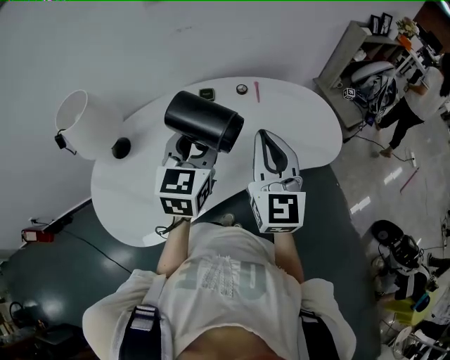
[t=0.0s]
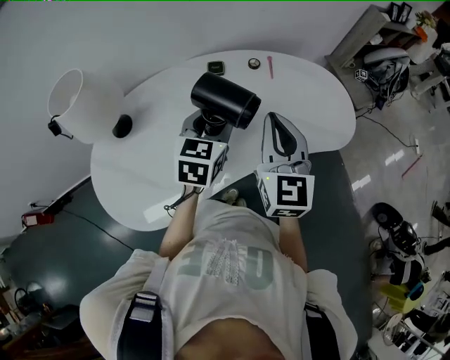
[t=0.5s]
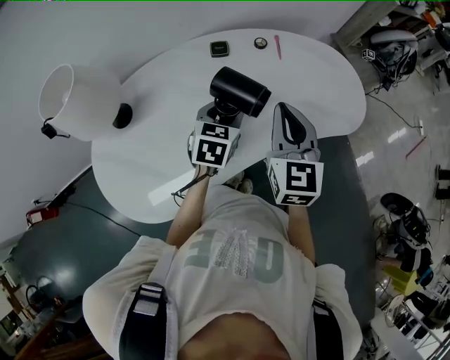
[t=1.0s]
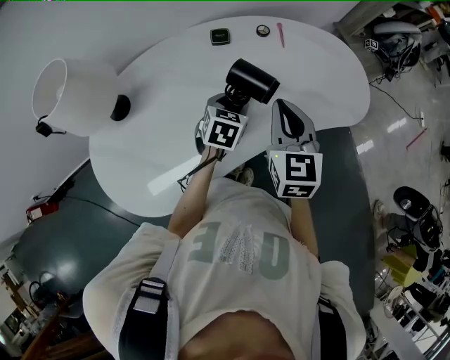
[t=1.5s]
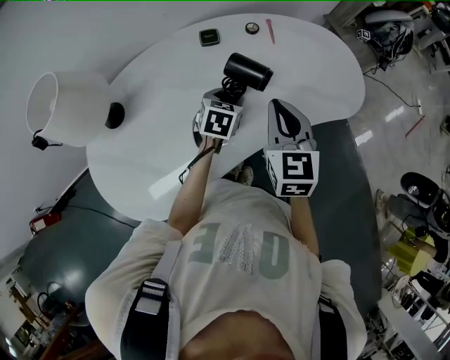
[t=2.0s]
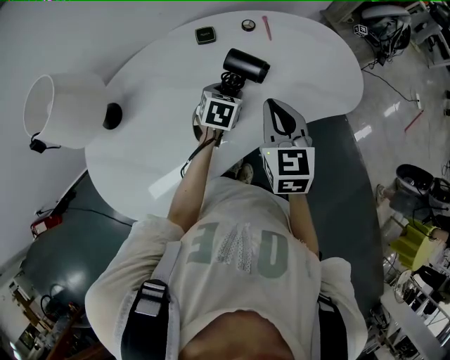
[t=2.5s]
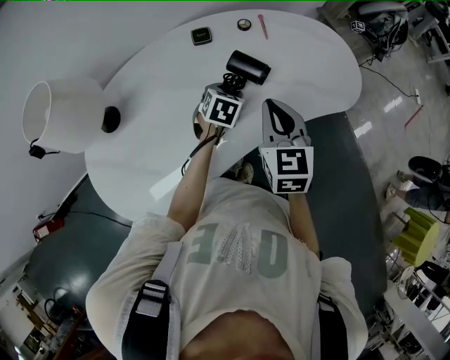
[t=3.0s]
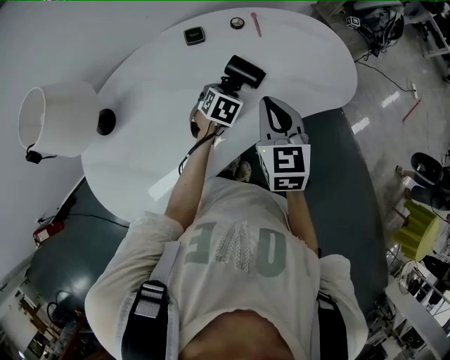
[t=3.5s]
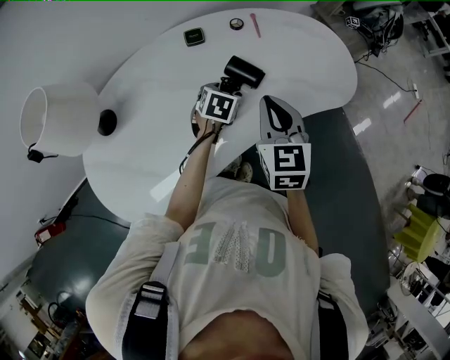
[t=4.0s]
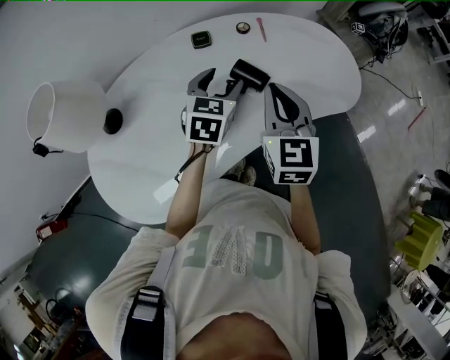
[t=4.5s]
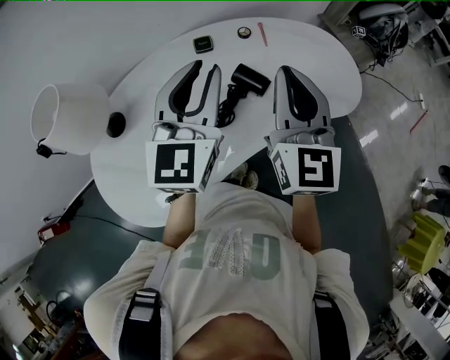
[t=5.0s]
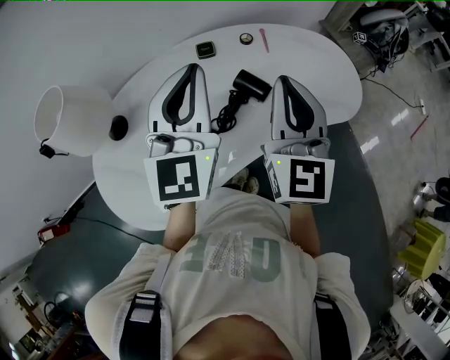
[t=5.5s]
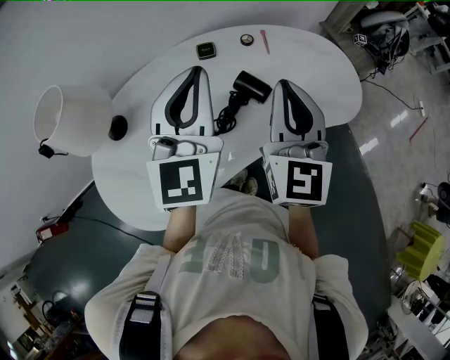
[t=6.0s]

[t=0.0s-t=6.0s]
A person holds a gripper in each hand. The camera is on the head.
t=0.0s to t=2.0s: The right gripper goes about 15 cm downward, and rotates about 20 degrees; the left gripper shifts approximately 25 cm downward, and tilts its fingers roughly 30 degrees downward.
t=2.0s to t=4.0s: The grippers make only small movements.
t=4.0s to t=6.0s: The left gripper shifts some 35 cm upward, tips its fingers upward by about 60 degrees, and closes up. The right gripper travels upward by approximately 15 cm, and turns by some 20 degrees.

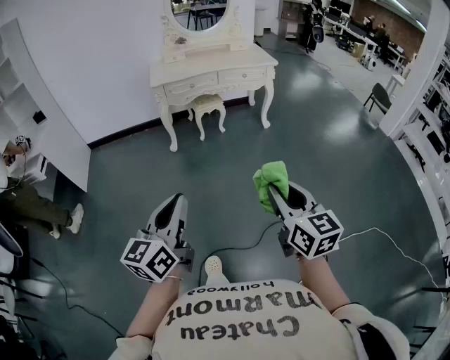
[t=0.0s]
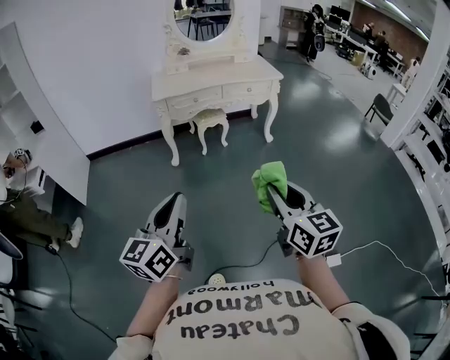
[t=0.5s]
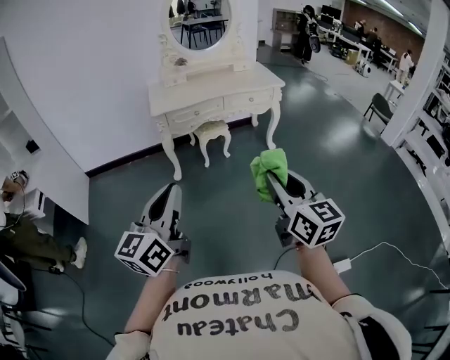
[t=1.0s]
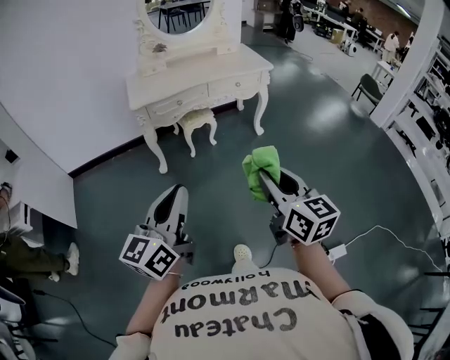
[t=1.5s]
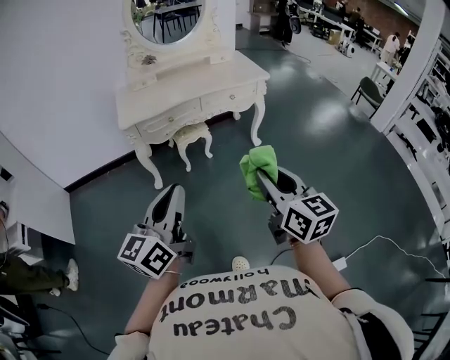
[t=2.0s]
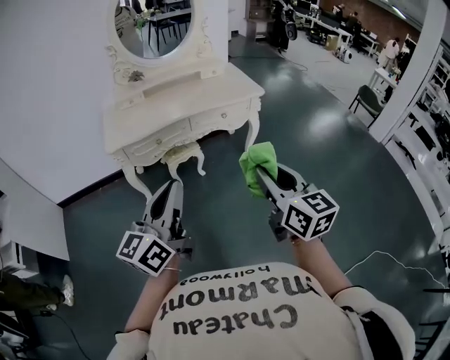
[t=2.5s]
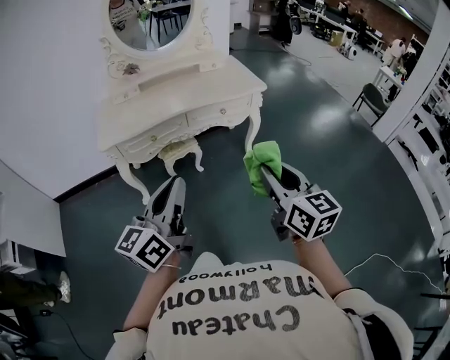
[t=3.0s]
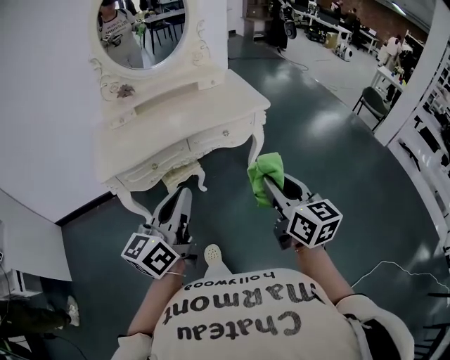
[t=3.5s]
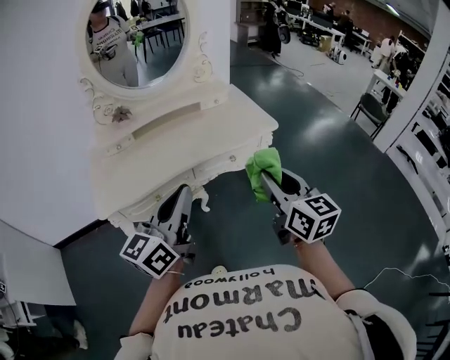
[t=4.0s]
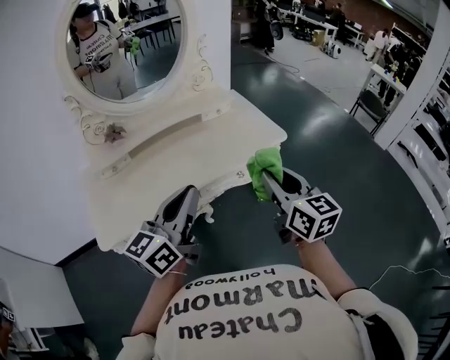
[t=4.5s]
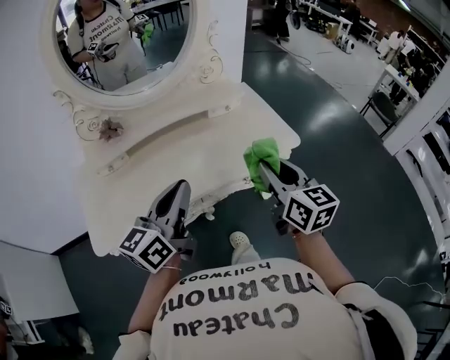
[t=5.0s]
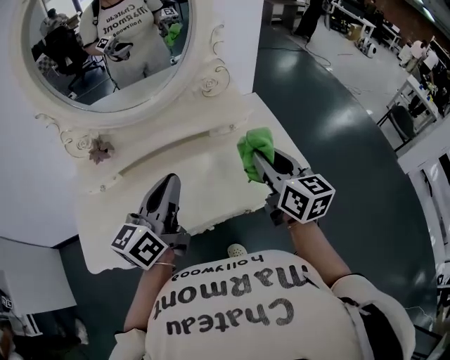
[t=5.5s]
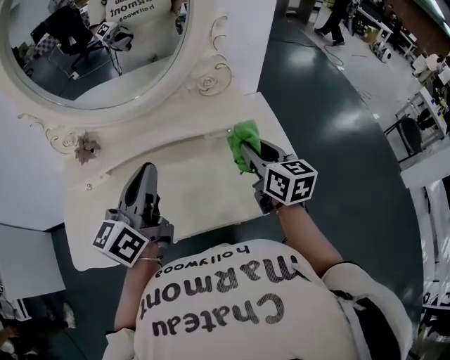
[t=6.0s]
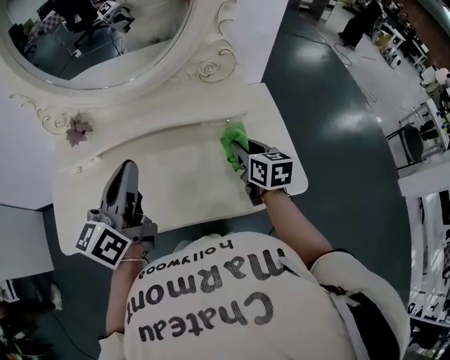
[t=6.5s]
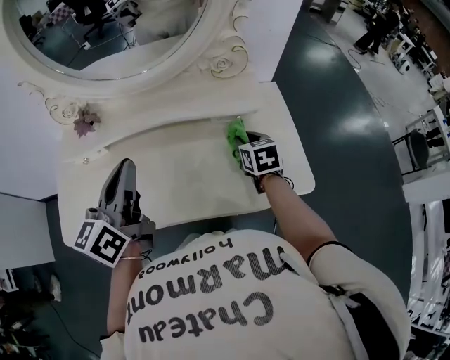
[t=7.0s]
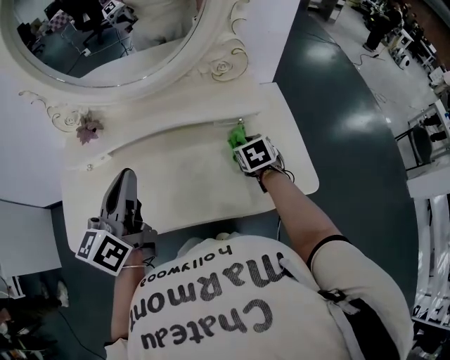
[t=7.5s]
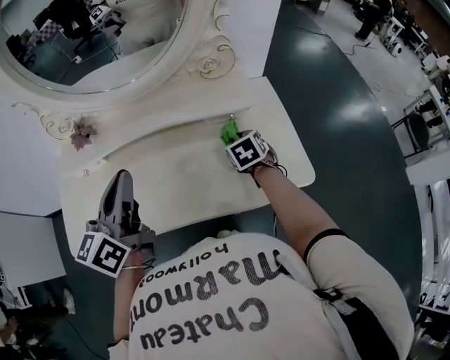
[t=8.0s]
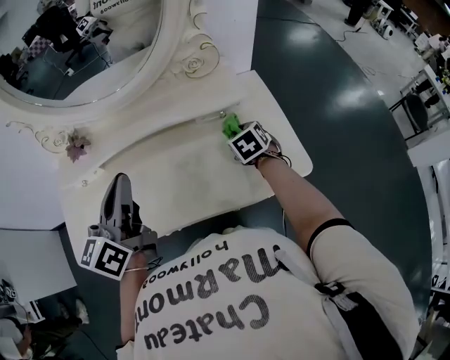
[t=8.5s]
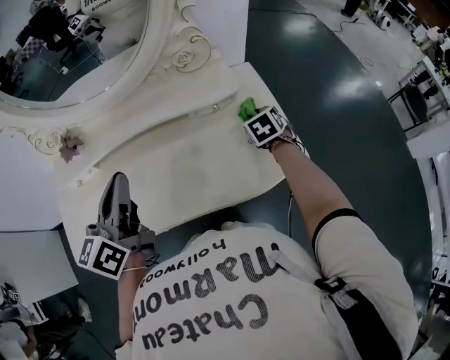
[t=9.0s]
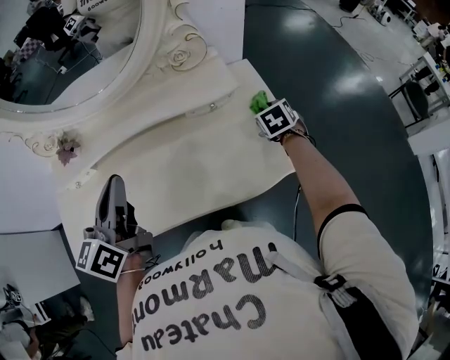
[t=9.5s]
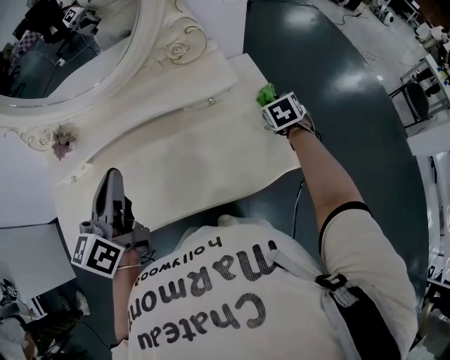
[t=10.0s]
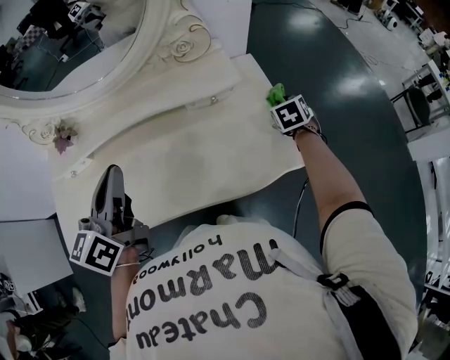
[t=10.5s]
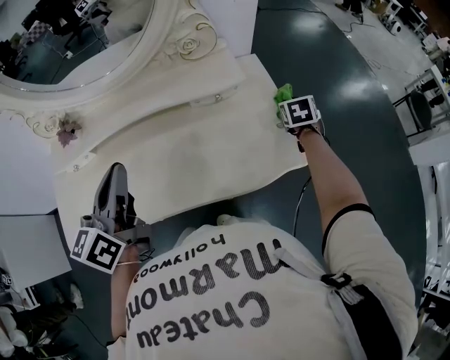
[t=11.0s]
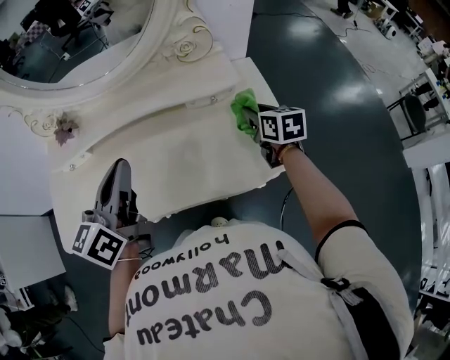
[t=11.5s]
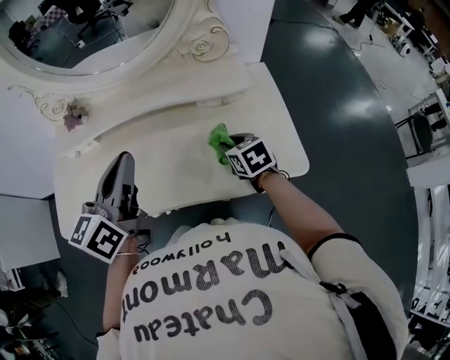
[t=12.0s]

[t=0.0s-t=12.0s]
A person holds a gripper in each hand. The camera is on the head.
t=0.0s to t=2.0s: The grippers both shift forward by some 35 cm.
t=2.0s to t=4.0s: The two grippers travel together, forward, roughly 40 cm.
t=4.0s to t=6.0s: The two grippers travel together, forward, roughly 50 cm. The left gripper swivels about 20 degrees.
t=6.0s to t=8.0s: The right gripper goes some 15 cm downward, and tilts its fingers approximately 40 degrees downward. The left gripper ends up approximately 5 cm from where it was.
t=8.0s to t=10.0s: The right gripper travels to the right by about 20 cm.
t=10.0s to t=12.0s: The right gripper shifts by about 20 cm, and changes its angle by about 30 degrees.

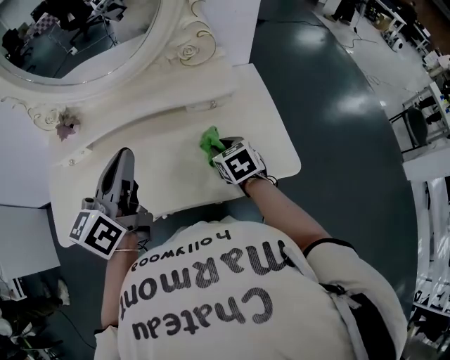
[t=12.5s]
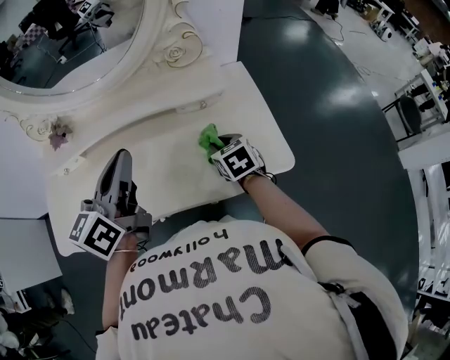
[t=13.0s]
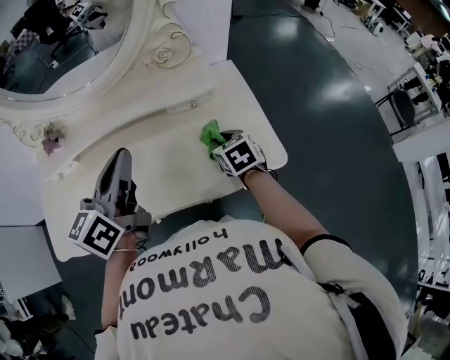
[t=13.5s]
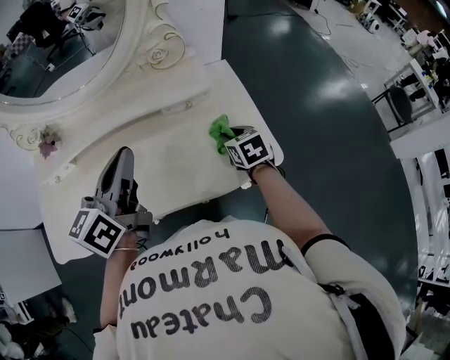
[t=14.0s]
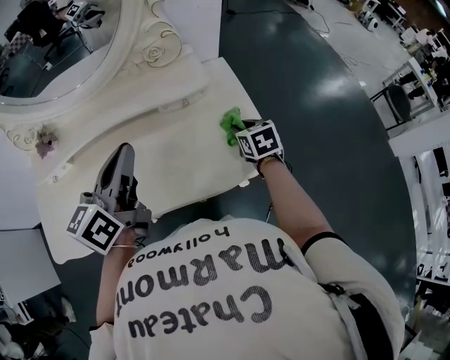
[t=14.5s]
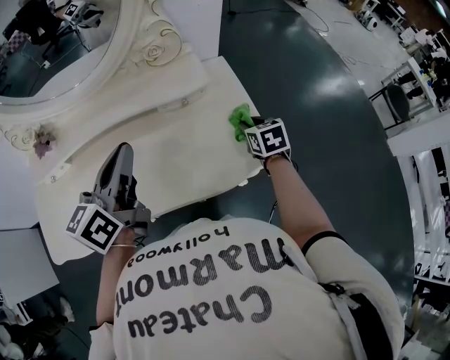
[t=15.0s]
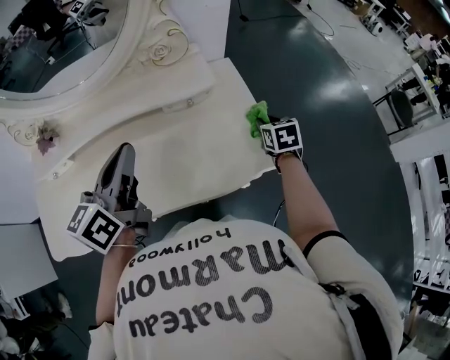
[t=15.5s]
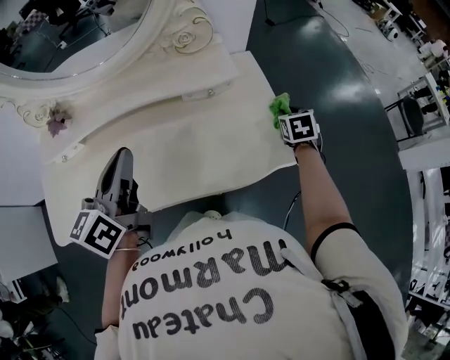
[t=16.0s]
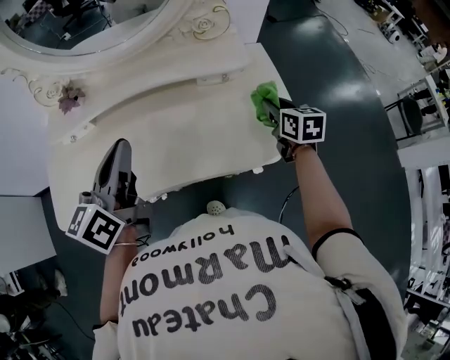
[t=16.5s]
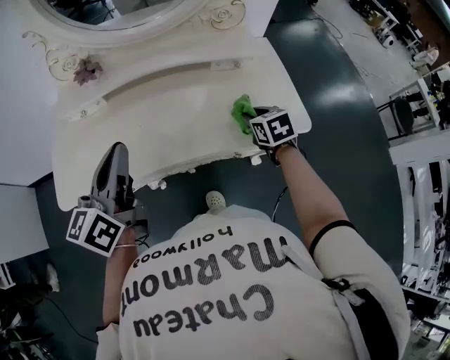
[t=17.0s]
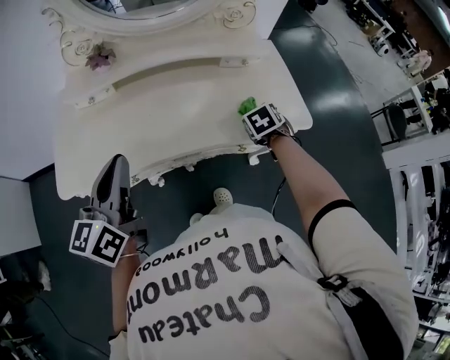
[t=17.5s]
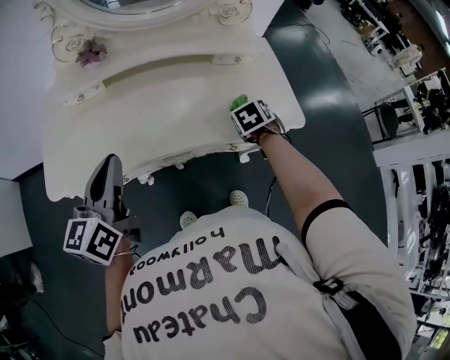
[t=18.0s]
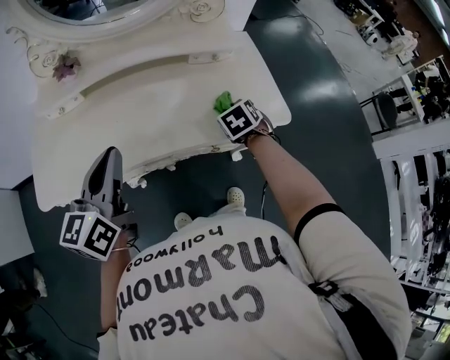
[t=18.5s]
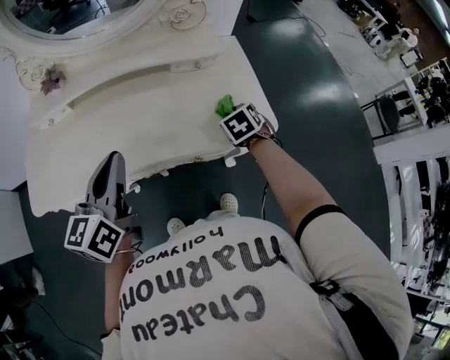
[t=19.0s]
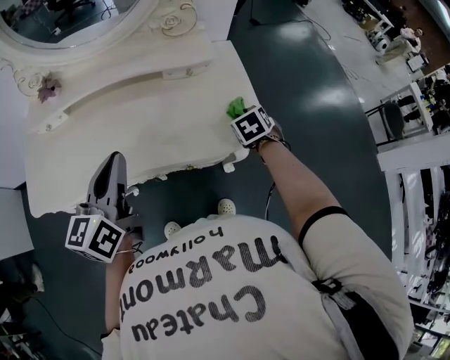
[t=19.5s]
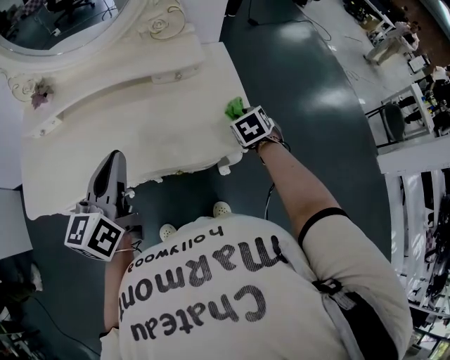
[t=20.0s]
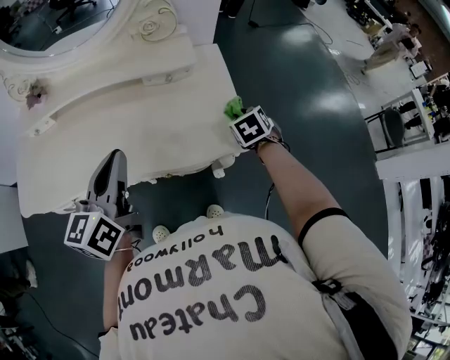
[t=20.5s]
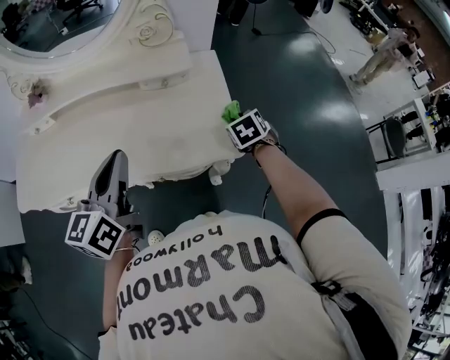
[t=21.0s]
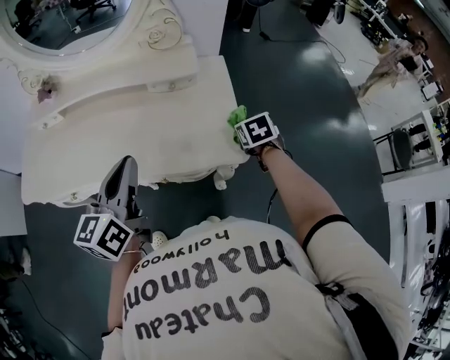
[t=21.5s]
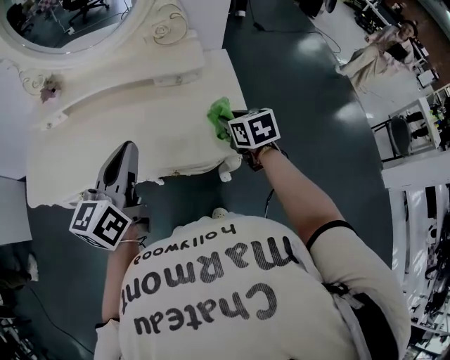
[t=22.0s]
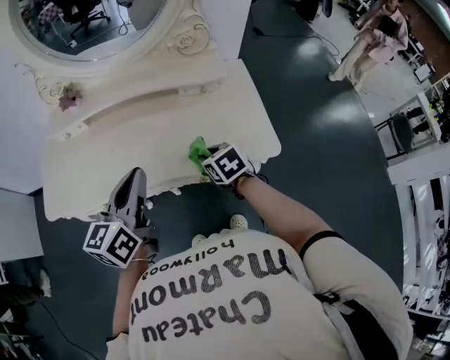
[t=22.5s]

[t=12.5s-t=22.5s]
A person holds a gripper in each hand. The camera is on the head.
t=12.5s to t=14.5s: The left gripper travels to the right by roughly 5 cm; the right gripper shifts about 15 cm to the right.
t=14.5s to t=16.5s: The right gripper shifts approximately 5 cm upward, and moves some 10 cm to the right and comes back. Meanwhile the left gripper goes approximately 15 cm to the left and backward.
t=16.5s to t=18.5s: The left gripper heads backward, covering some 10 cm. Meanwhile the right gripper shifts some 15 cm to the left, backward and downward, and changes its angle by roughly 40 degrees.
t=18.5s to t=20.5s: The left gripper shifts some 20 cm to the right, while the right gripper moves to the right and forward, about 20 cm.
t=20.5s to t=22.5s: The left gripper goes about 10 cm to the left. Meanwhile the right gripper shifts about 25 cm to the left, and swivels some 20 degrees.
